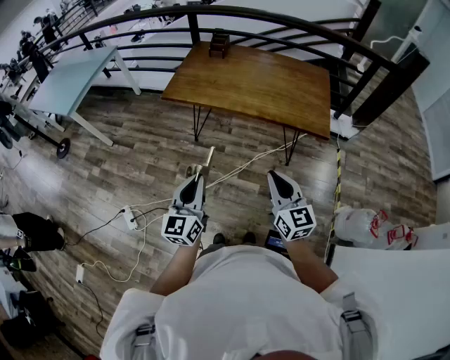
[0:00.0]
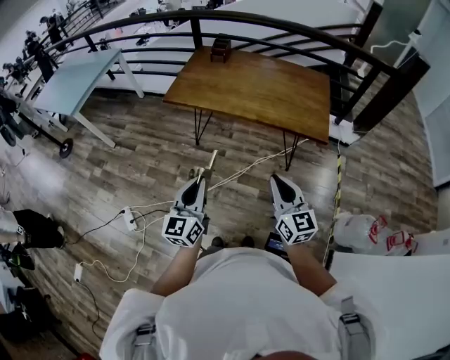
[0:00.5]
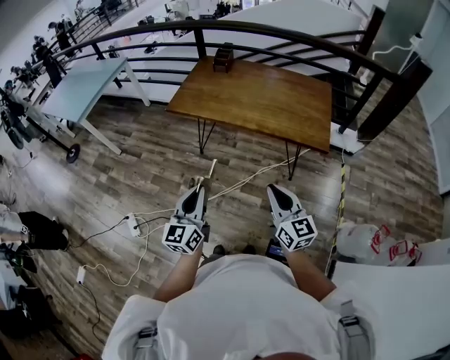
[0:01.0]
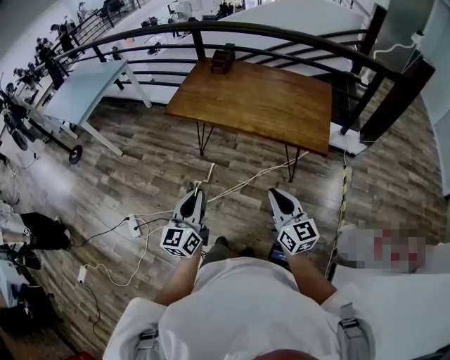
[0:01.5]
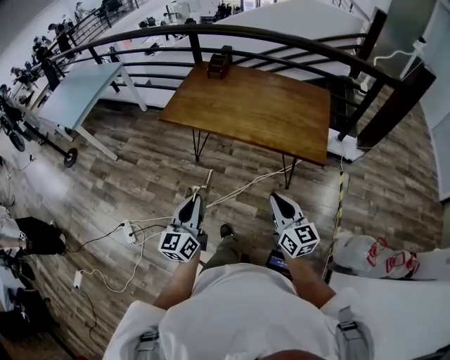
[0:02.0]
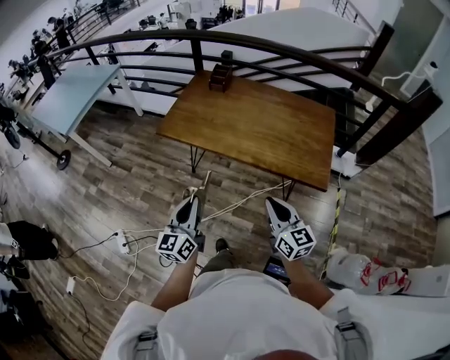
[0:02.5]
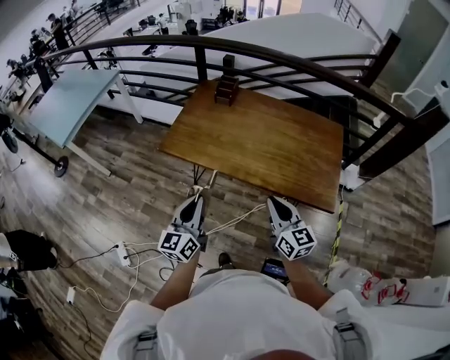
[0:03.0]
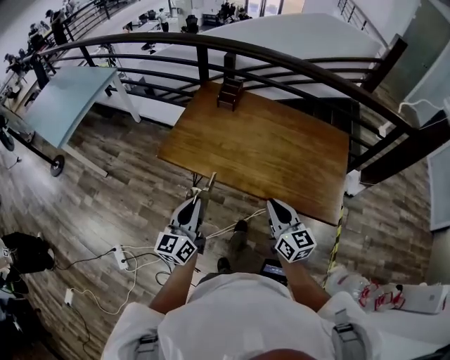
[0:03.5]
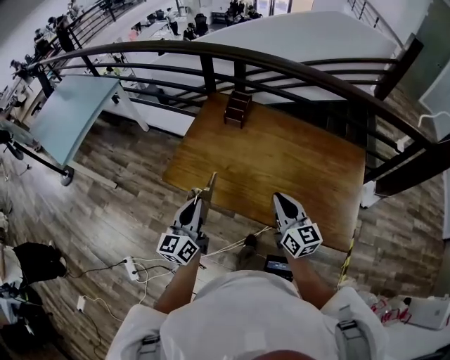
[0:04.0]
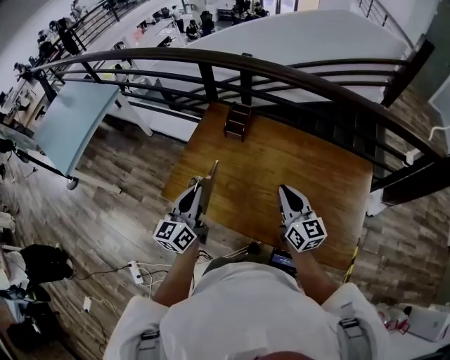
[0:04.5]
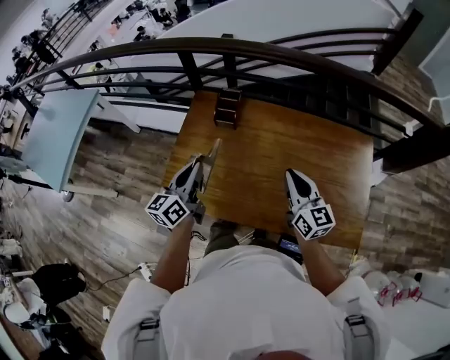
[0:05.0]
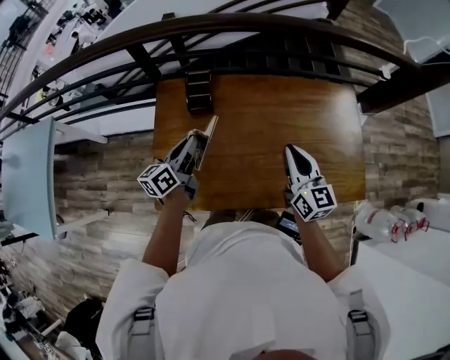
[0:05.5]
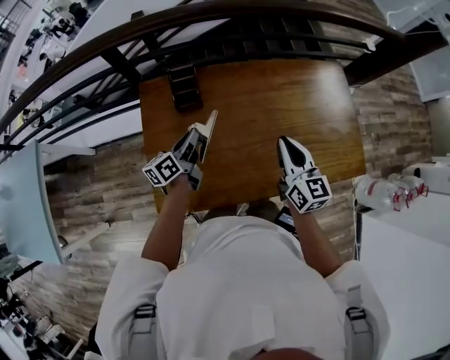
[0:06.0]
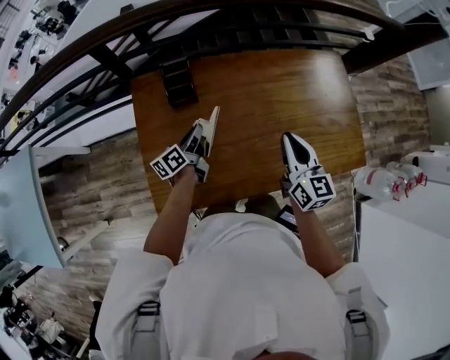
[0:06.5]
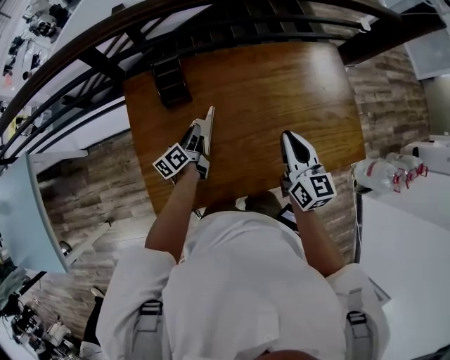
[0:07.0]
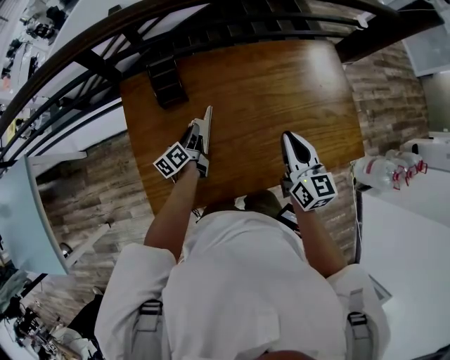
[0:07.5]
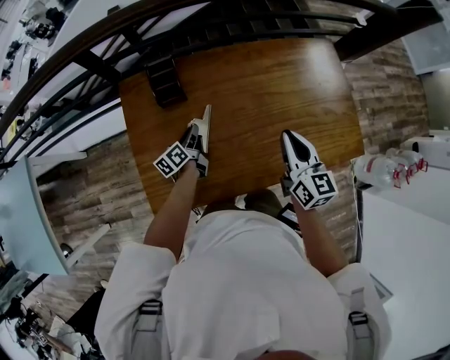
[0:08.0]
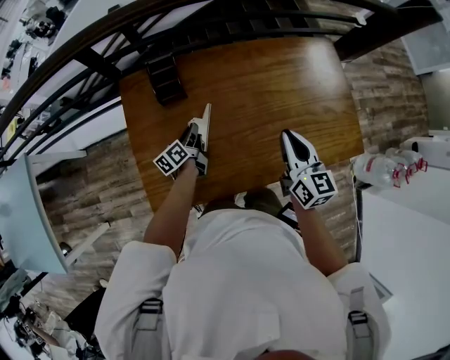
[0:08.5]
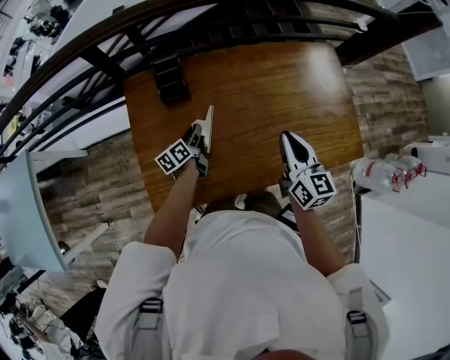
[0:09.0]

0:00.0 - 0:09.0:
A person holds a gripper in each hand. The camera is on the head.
0:00.0 - 0:02.0: The two grippers go some 10 cm to the right.
0:02.0 - 0:04.5: The two grippers travel together, forward, approximately 60 cm.
0:04.5 - 0:07.0: The right gripper ends up approximately 10 cm from where it was, and rotates some 40 degrees. Meanwhile the left gripper is displaced downward by approximately 25 cm, and rotates roughly 50 degrees.
0:07.0 - 0:09.0: The left gripper opens.

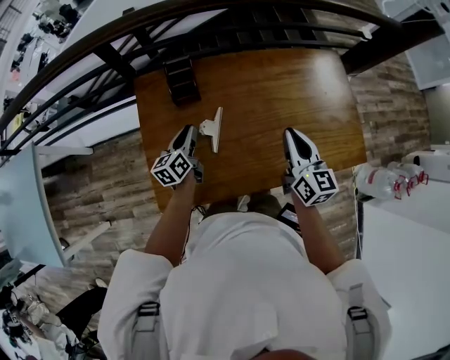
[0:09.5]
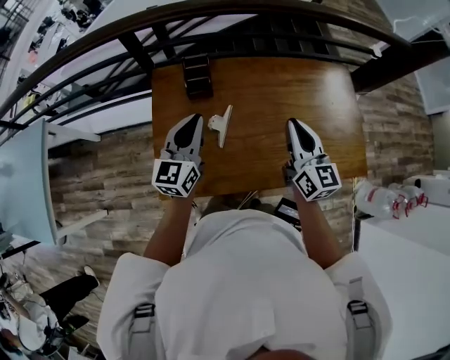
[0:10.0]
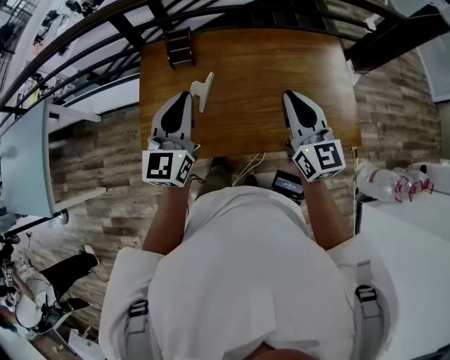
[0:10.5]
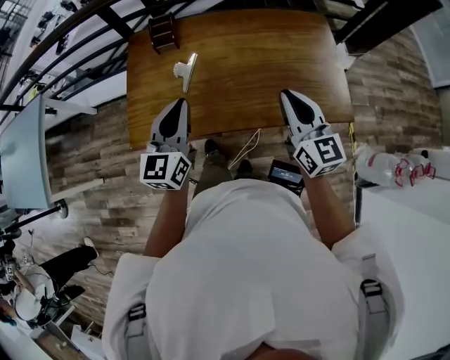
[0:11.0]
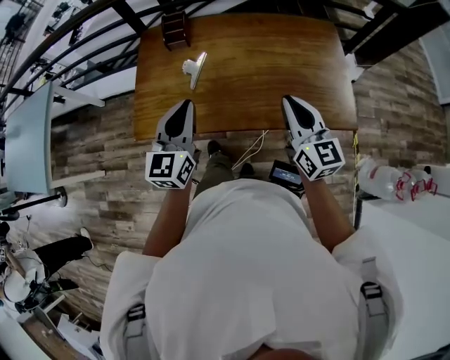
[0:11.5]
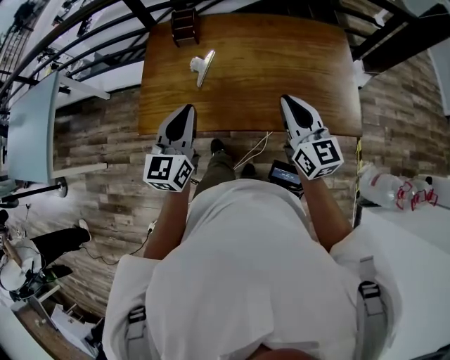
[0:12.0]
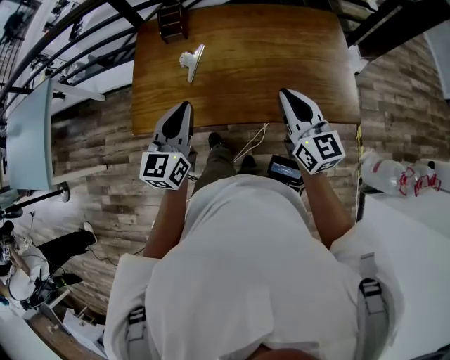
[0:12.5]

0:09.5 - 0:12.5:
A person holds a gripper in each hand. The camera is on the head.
0:09.5 - 0:11.0: The left gripper moves backward, upward and to the right, approximately 35 cm, and changes its angle by about 40 degrees, while the right gripper heads backward and to the right, covering about 20 cm.
0:11.0 - 0:12.5: There are only small adjustments of the grippers.

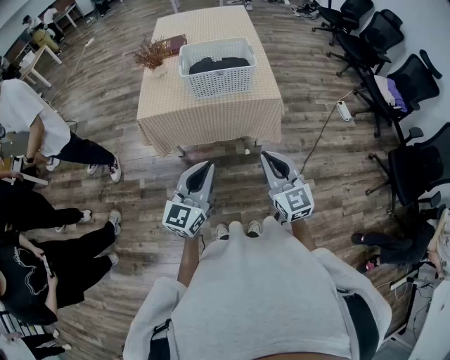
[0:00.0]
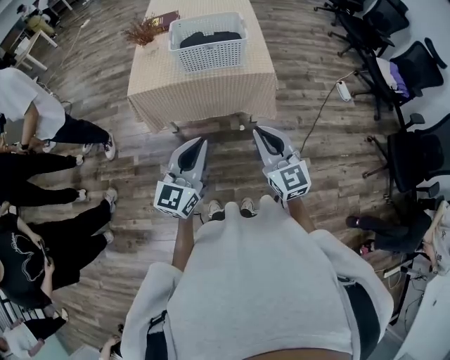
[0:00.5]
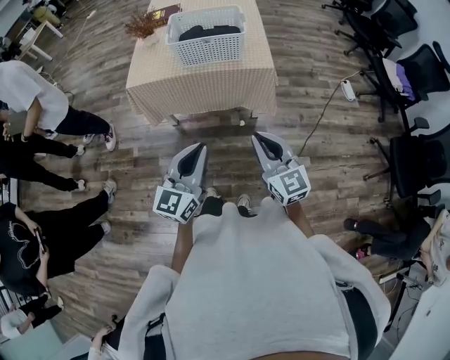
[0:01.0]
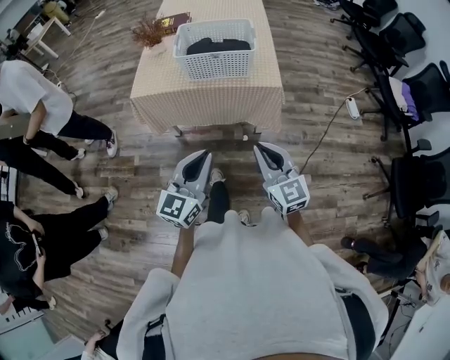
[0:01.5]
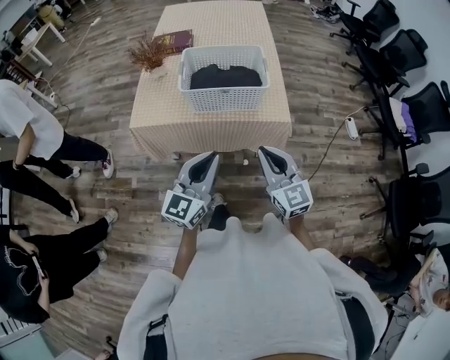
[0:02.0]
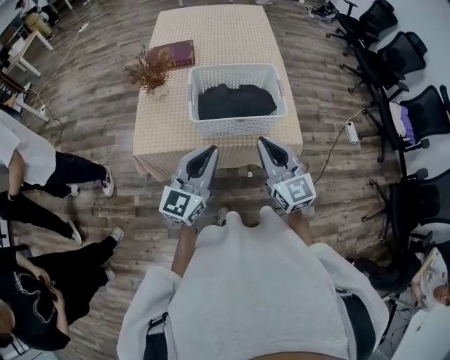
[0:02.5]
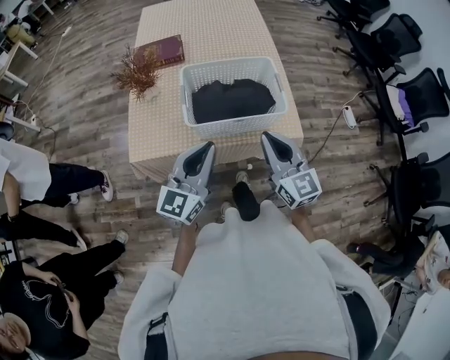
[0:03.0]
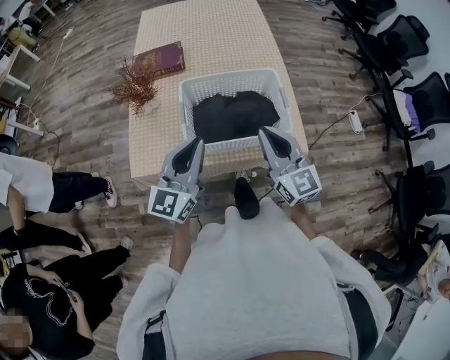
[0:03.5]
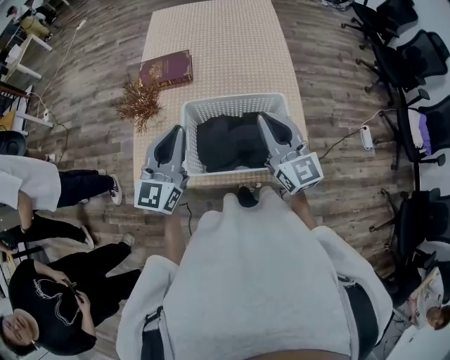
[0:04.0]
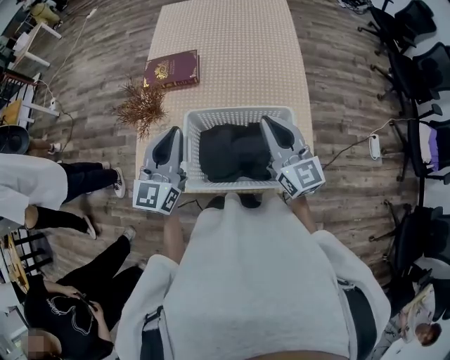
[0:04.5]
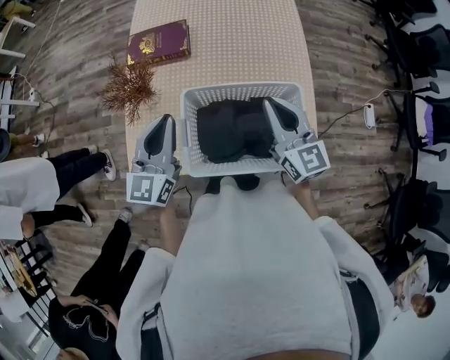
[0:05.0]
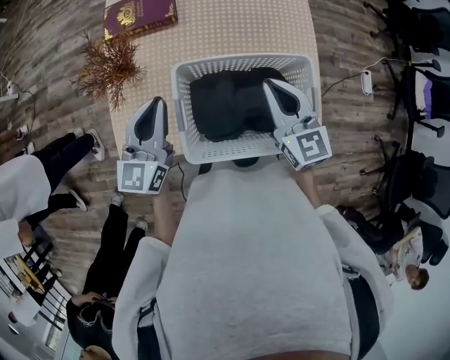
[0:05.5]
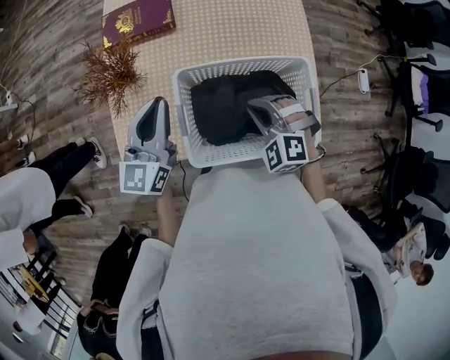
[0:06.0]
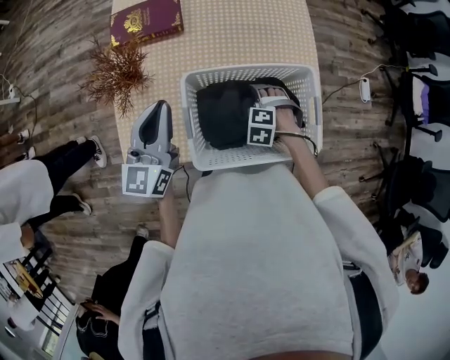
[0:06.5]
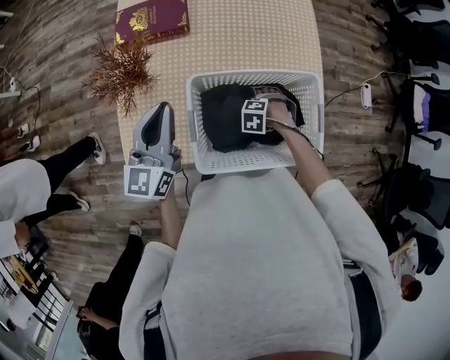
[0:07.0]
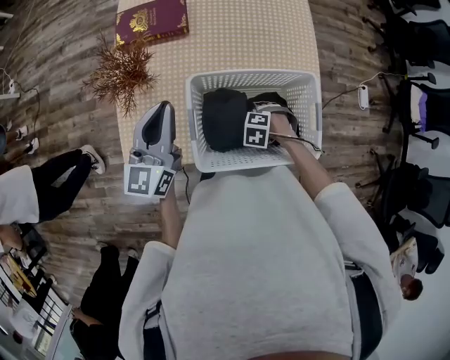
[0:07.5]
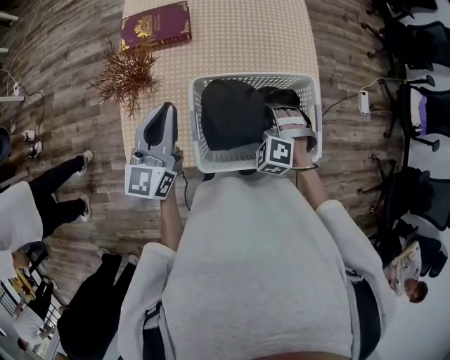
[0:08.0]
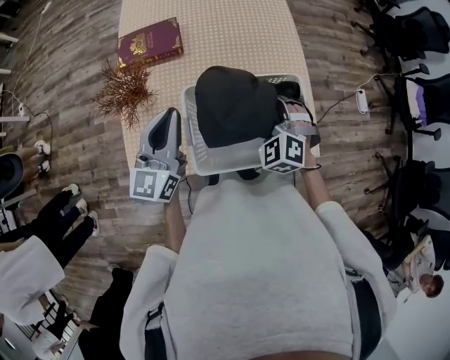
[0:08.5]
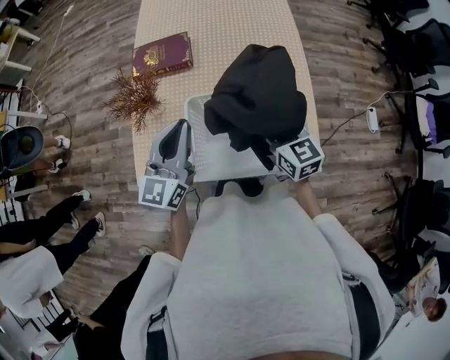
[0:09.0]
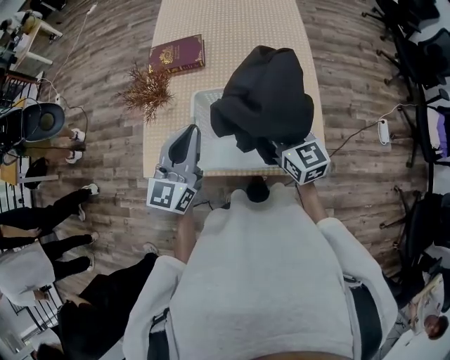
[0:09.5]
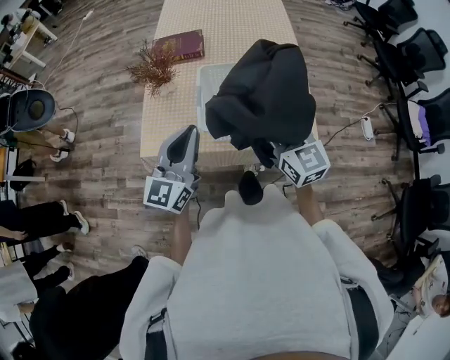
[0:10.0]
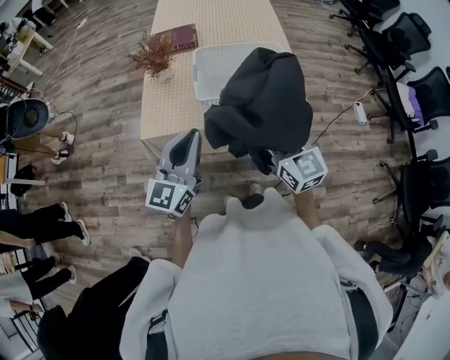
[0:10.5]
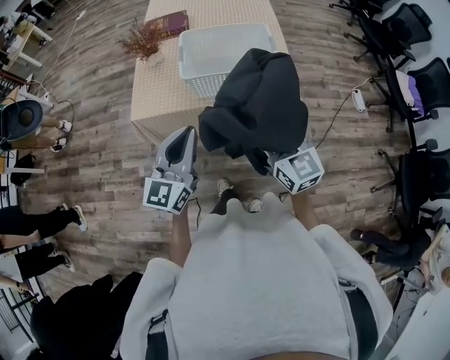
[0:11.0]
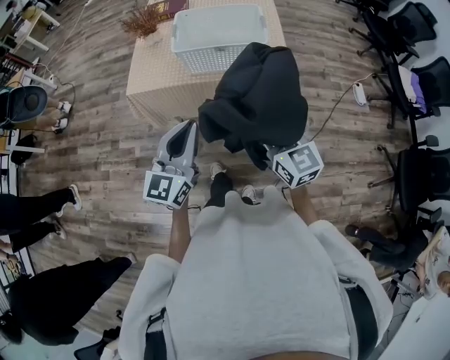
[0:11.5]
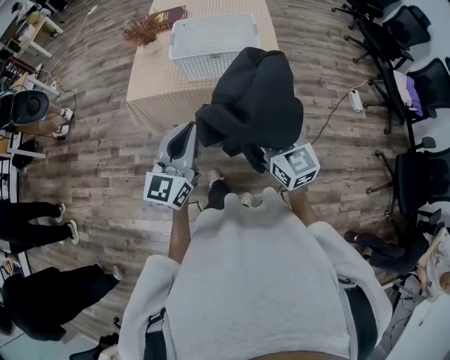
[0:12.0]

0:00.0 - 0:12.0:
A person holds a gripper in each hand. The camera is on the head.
0:00.0 - 0:02.0: The two grippers go some 20 cm forward.
0:02.0 - 0:04.0: Both grippers travel together forward, approximately 35 cm.
0:04.0 - 0:06.0: The right gripper travels downward by roughly 20 cm, and tips its fingers downward by about 50 degrees, while the left gripper is displaced downward, forward and to the left by approximately 15 cm.
0:06.0 - 0:08.0: The right gripper goes downward and returns, roughly 20 cm each way, and opens, then closes once more.
0:08.0 - 0:10.0: The left gripper goes about 20 cm backward; the right gripper travels upward and backward by approximately 25 cm, and tilts its fingers about 50 degrees upward.
0:10.0 - 0:12.0: The two grippers go some 30 cm backward.

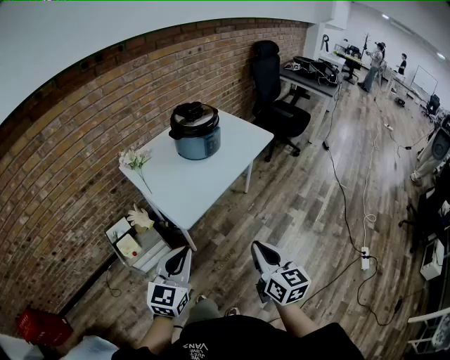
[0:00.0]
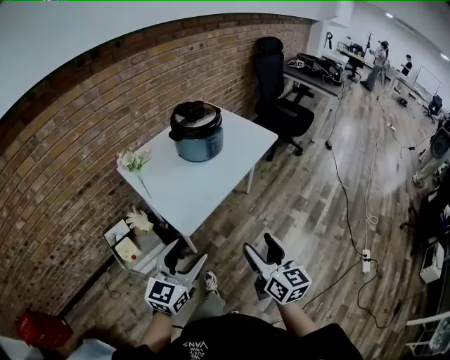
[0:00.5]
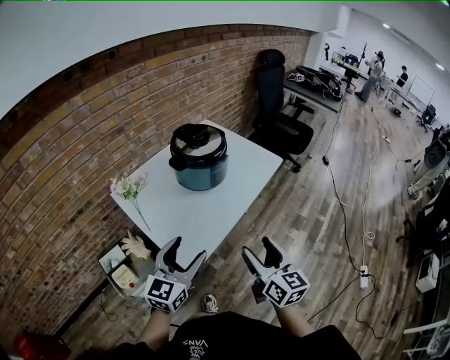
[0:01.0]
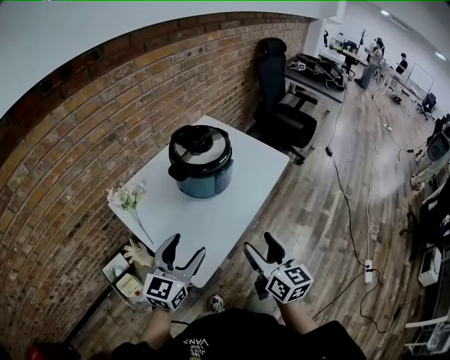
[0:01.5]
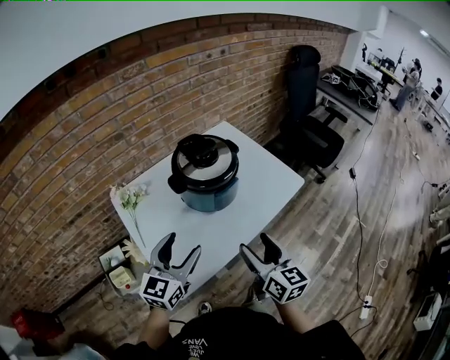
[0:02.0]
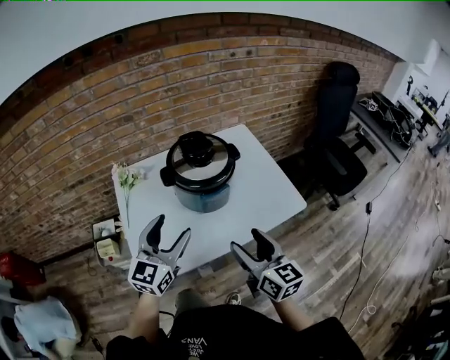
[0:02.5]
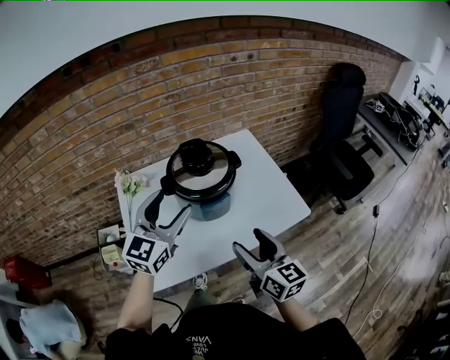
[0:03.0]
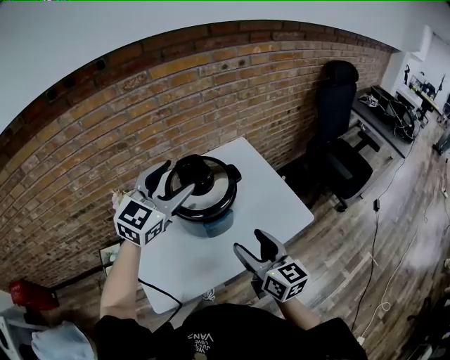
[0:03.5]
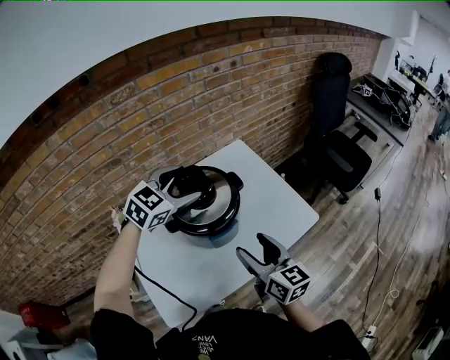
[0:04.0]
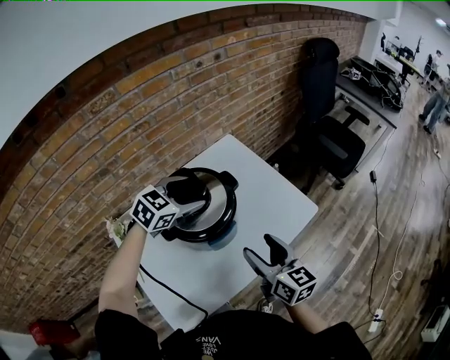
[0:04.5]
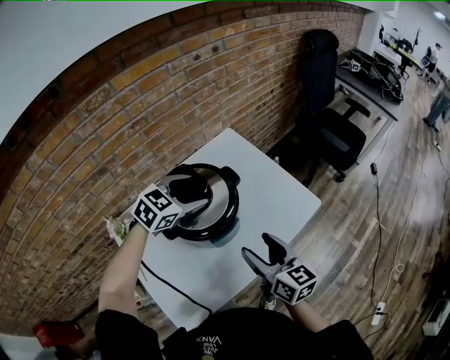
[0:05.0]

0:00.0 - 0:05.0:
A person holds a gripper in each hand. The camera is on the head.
0:00.0 - 0:02.5: The right gripper moves roughly 40 cm, swivels roughly 30 degrees, and opens its fingers. The left gripper moves approximately 40 cm, rotates some 20 degrees, and opens up.
0:02.5 - 0:05.0: The left gripper travels upward and back again, approximately 10 cm each way, and angles its fingers downward, by roughly 30 degrees. Meanwhile the right gripper ends up approximately 10 cm from where it was.
